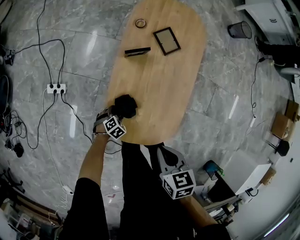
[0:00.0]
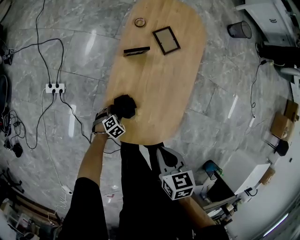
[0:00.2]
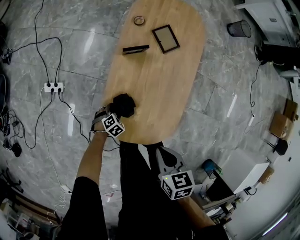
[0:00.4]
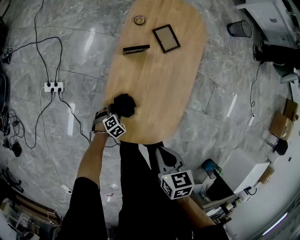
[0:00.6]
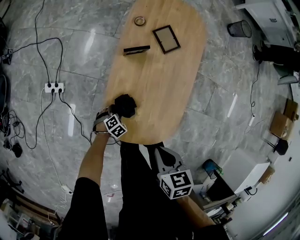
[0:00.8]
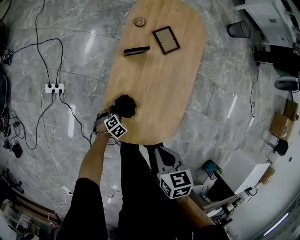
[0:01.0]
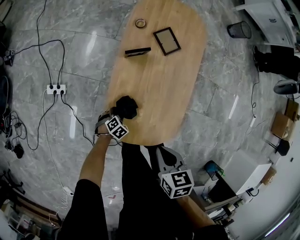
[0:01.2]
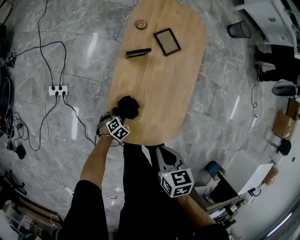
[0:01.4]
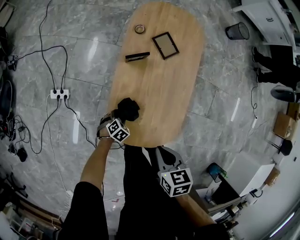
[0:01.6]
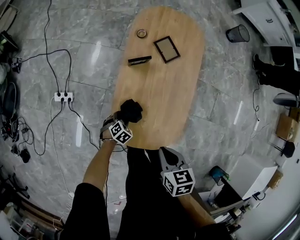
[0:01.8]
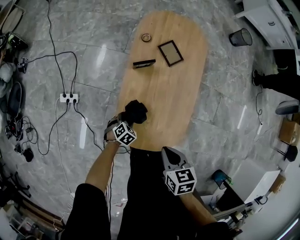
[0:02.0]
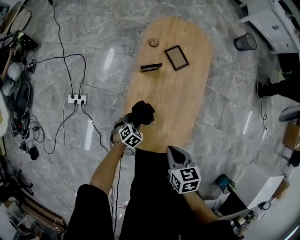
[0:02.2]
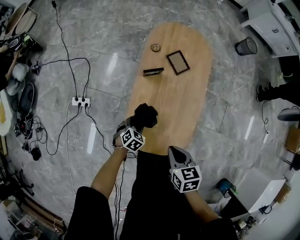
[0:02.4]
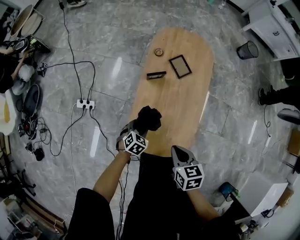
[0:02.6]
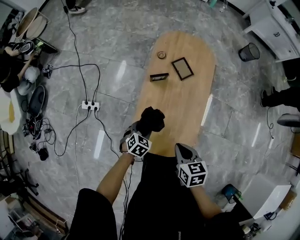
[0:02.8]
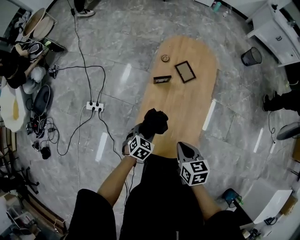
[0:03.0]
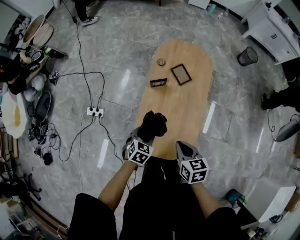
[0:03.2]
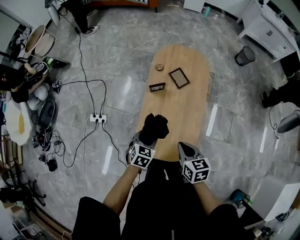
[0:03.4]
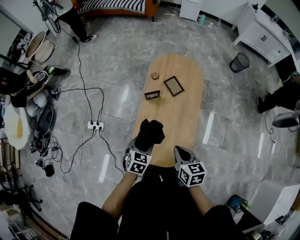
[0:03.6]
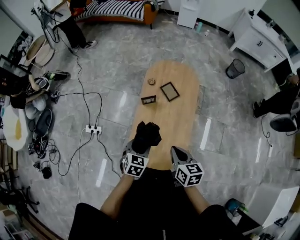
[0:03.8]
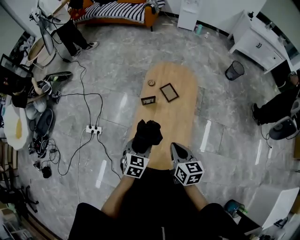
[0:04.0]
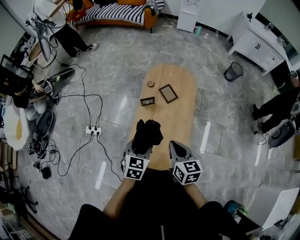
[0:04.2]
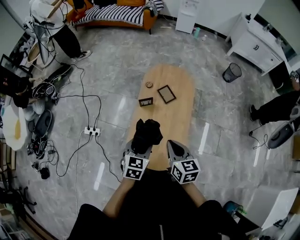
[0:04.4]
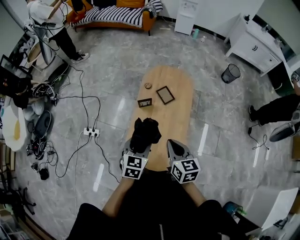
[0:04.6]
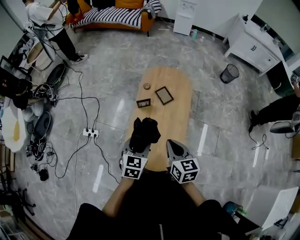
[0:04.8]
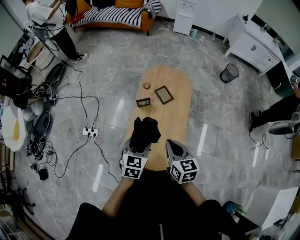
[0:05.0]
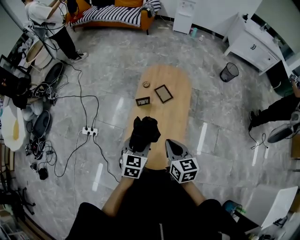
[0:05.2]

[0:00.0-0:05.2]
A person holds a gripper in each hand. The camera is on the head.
0:00.0 to 0:01.8: There are only small adjustments of the grippers.
0:01.8 to 0:03.4: The left gripper shifts approximately 25 cm upward, and rotates roughly 30 degrees; the right gripper goes about 10 cm upward.
0:03.4 to 0:05.2: The right gripper moves upward, approximately 10 cm. Meanwhile the left gripper moves upward, roughly 15 cm.

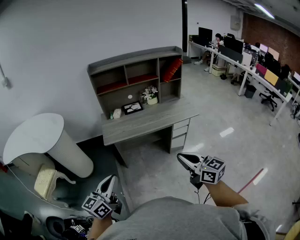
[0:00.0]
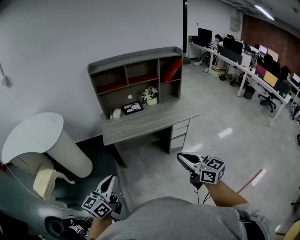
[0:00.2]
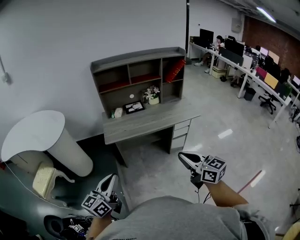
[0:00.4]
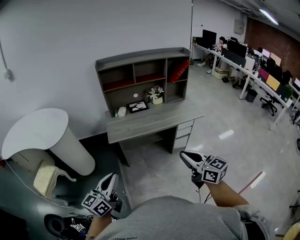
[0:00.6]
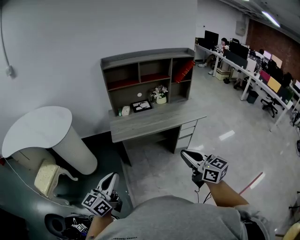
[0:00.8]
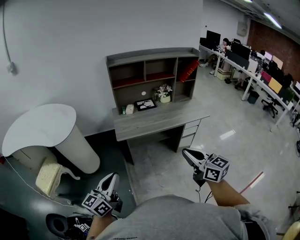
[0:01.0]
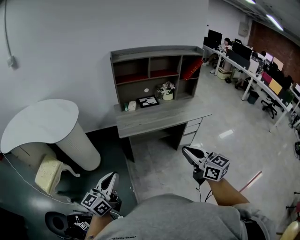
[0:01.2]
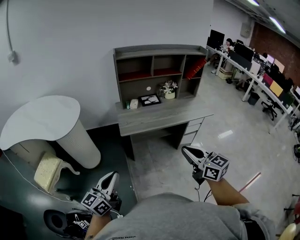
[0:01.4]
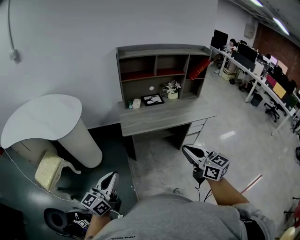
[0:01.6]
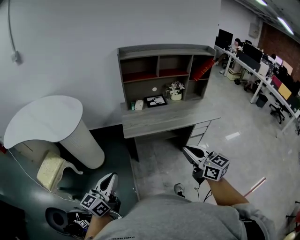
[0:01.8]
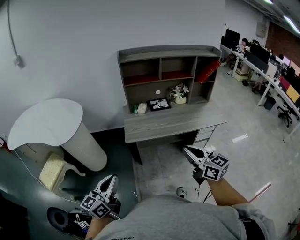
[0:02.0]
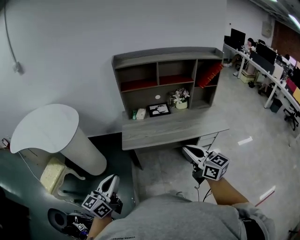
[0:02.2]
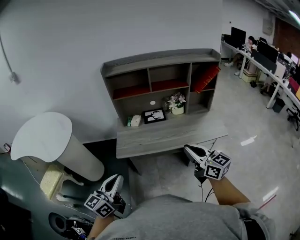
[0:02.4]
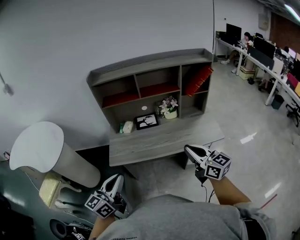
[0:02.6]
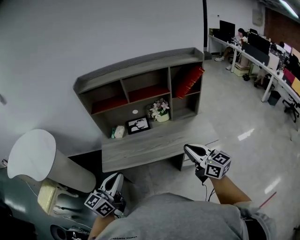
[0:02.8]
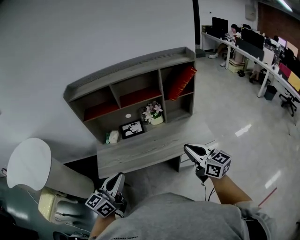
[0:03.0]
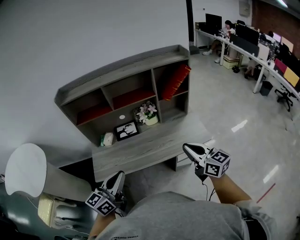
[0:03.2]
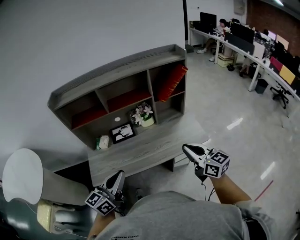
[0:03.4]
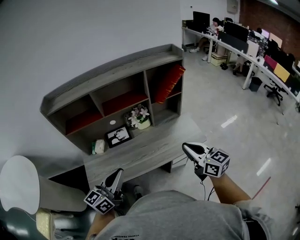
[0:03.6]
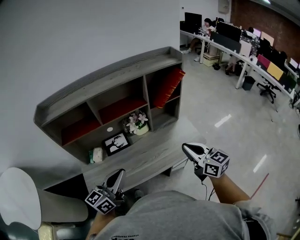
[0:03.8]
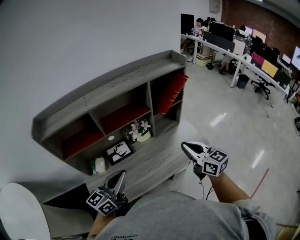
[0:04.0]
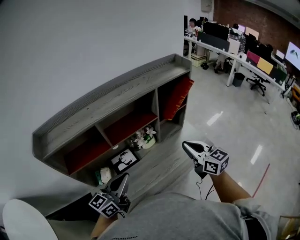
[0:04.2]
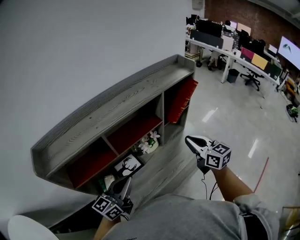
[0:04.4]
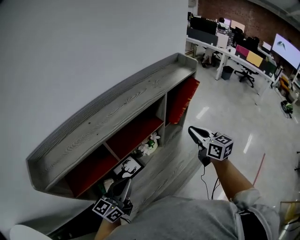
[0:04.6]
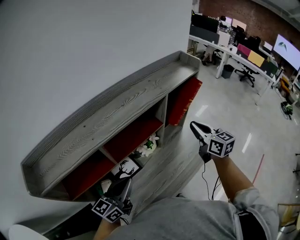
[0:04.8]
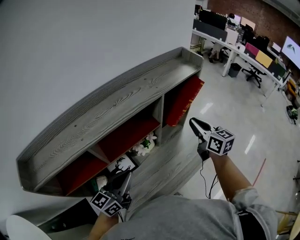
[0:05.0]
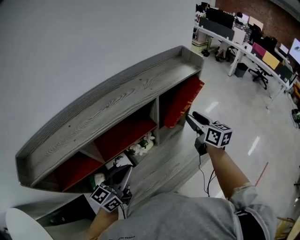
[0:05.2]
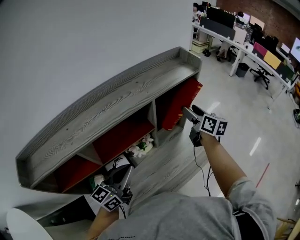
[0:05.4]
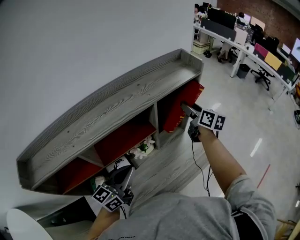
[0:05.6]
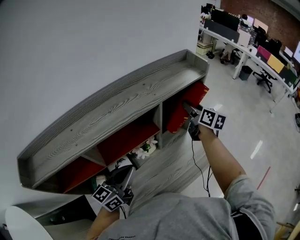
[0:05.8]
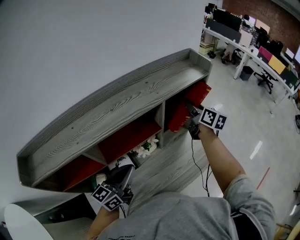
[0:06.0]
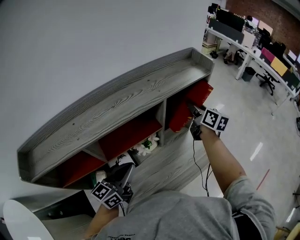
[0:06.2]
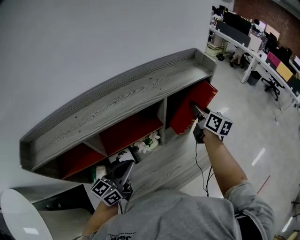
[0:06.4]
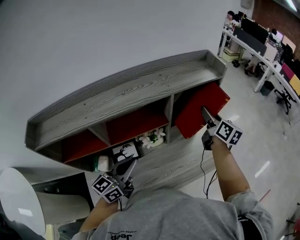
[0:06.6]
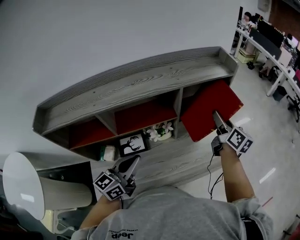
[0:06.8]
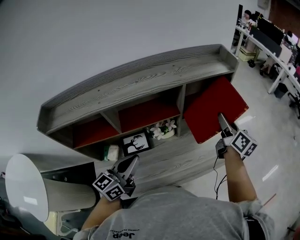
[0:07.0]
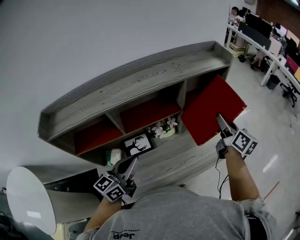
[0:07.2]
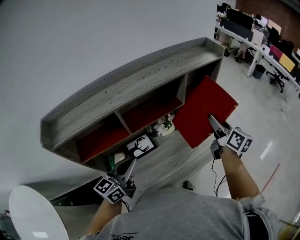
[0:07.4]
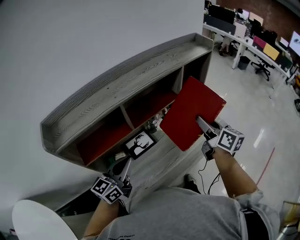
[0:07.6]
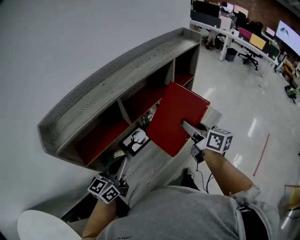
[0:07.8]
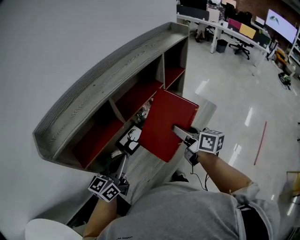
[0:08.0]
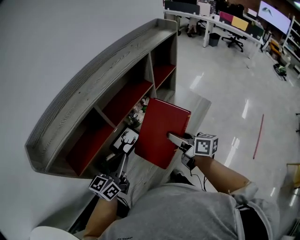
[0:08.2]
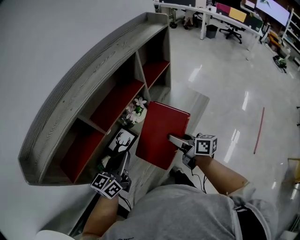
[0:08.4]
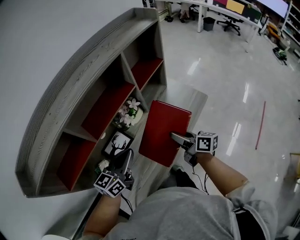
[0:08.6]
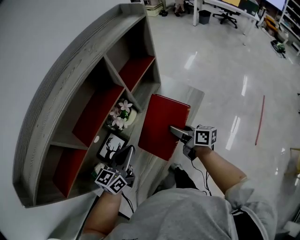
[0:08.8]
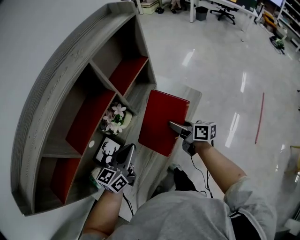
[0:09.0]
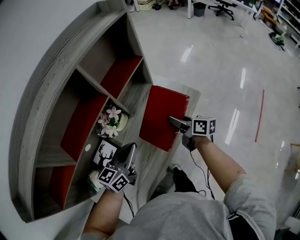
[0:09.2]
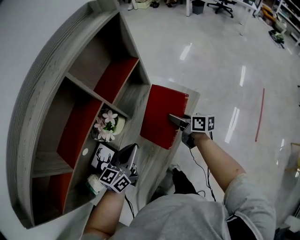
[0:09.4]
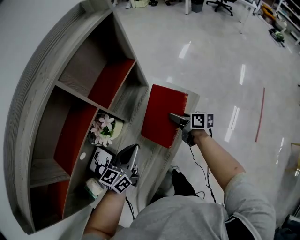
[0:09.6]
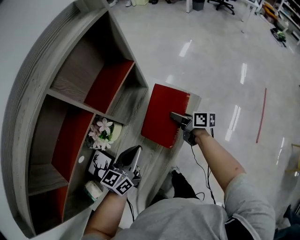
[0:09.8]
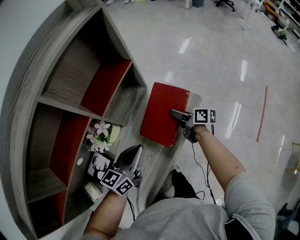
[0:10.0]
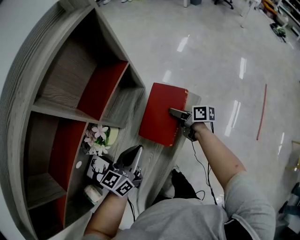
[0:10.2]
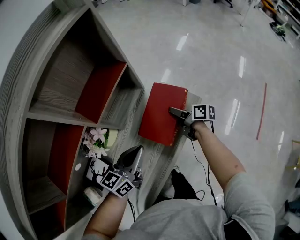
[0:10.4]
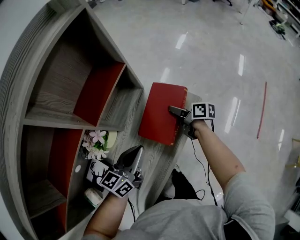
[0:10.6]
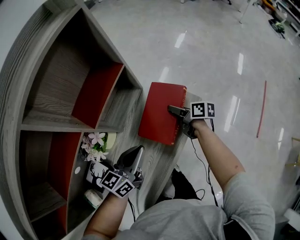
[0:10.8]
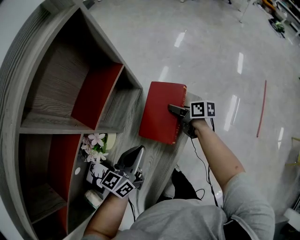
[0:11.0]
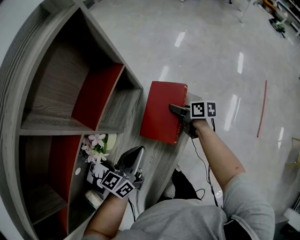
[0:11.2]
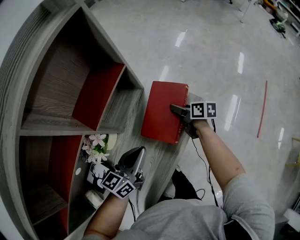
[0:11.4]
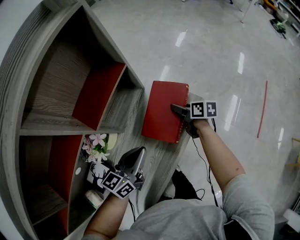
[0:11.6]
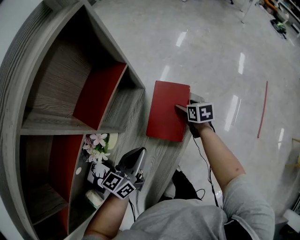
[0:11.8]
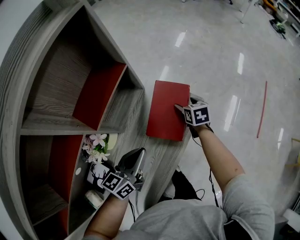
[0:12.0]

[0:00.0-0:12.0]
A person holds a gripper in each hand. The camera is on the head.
0:00.0 to 0:01.6: Both grippers travel together to the left, roughly 20 cm.
0:01.6 to 0:03.0: The pair of grippers is taken to the right and forward, about 50 cm.
0:03.0 to 0:04.4: The right gripper moves about 25 cm, and changes its angle by some 30 degrees. The left gripper ends up some 35 cm from where it was, and rotates some 30 degrees.
0:04.4 to 0:06.0: The right gripper is displaced forward by roughly 30 cm, turns by some 30 degrees, and opens; the left gripper moves forward, some 15 cm.
0:06.0 to 0:07.6: The left gripper moves backward and to the left, roughly 20 cm; the right gripper shifts about 30 cm backward.
0:07.6 to 0:09.0: The left gripper is displaced to the right, downward and forward by roughly 25 cm, and rotates roughly 20 degrees. The right gripper moves downward, about 25 cm, and rotates roughly 20 degrees.
0:09.0 to 0:10.4: The left gripper moves forward, to the right and downward, some 20 cm. Meanwhile the right gripper is displaced downward, forward and to the right by roughly 25 cm.
0:10.4 to 0:12.0: The right gripper travels to the right by about 5 cm, turns by about 50 degrees, and opens its fingers.

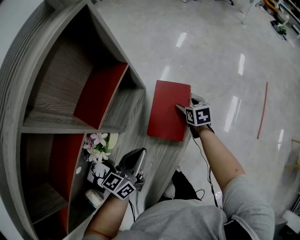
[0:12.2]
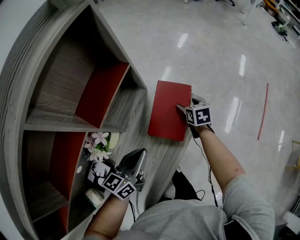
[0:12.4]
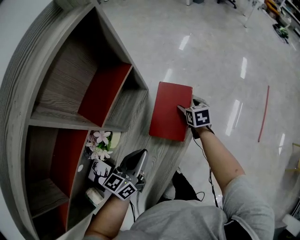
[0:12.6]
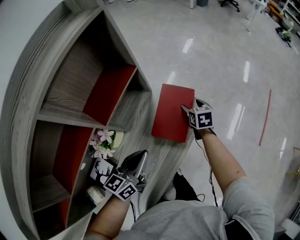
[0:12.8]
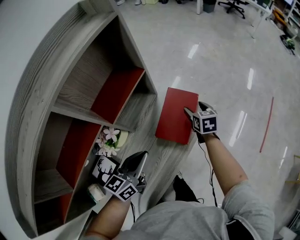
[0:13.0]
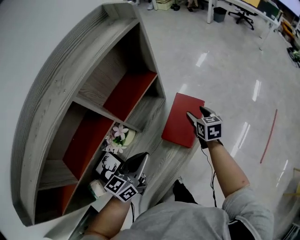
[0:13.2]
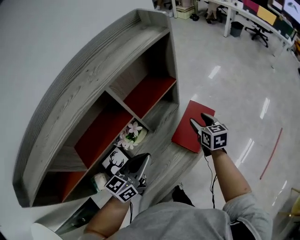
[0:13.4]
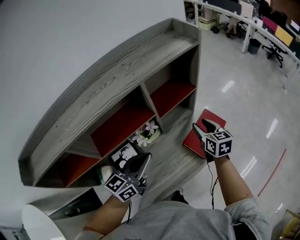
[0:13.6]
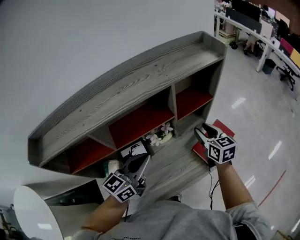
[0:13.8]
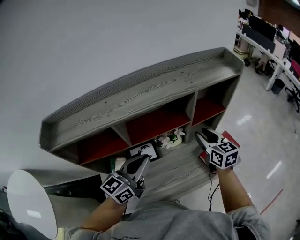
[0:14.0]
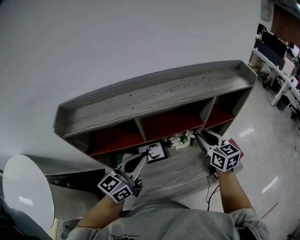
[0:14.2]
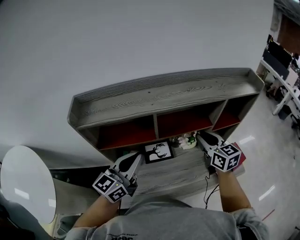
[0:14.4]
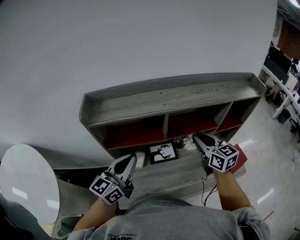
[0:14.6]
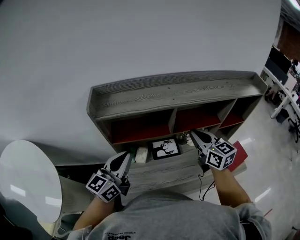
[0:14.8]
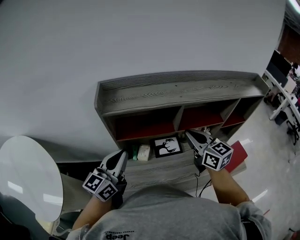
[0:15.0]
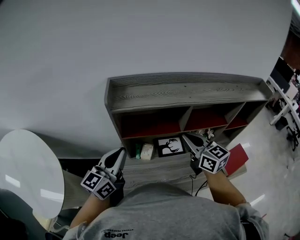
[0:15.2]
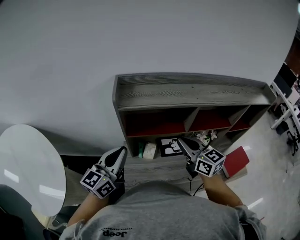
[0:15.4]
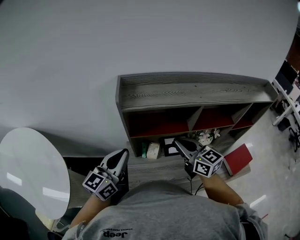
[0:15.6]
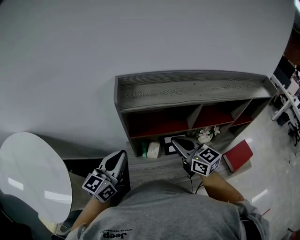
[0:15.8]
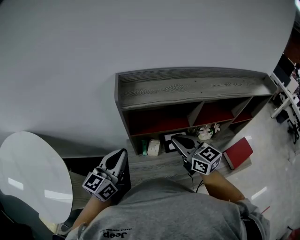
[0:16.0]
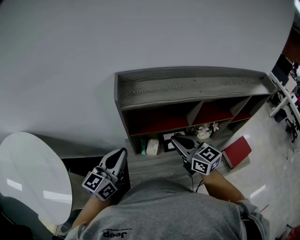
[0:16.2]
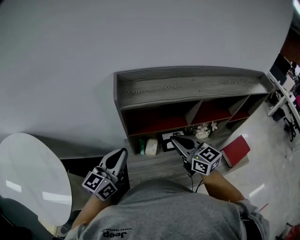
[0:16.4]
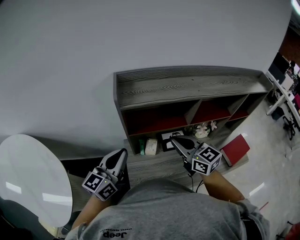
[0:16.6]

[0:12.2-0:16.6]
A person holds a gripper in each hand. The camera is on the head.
0:12.2 to 0:13.6: The left gripper goes roughly 20 cm upward, to the left and backward, and changes its angle by about 20 degrees, while the right gripper goes about 25 cm upward and to the left, turns by some 30 degrees, and closes up.
0:13.6 to 0:15.2: Both grippers are carried roughly 50 cm. The left gripper rotates about 40 degrees, while the right gripper rotates roughly 50 degrees, and closes its fingers.
0:15.2 to 0:16.6: The right gripper goes approximately 10 cm to the left.

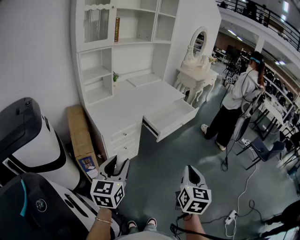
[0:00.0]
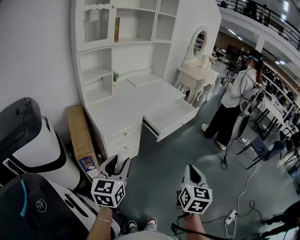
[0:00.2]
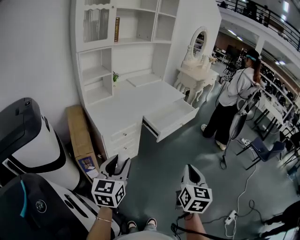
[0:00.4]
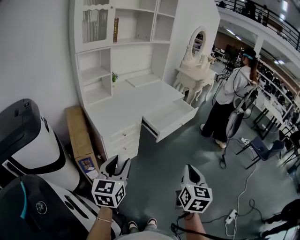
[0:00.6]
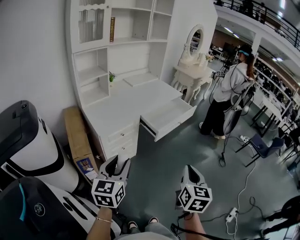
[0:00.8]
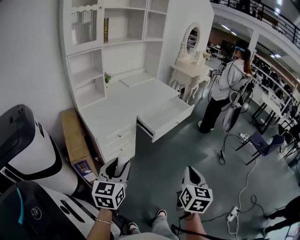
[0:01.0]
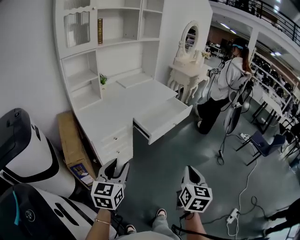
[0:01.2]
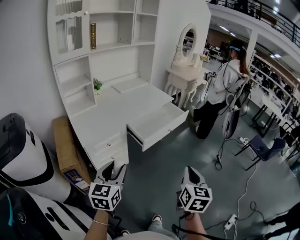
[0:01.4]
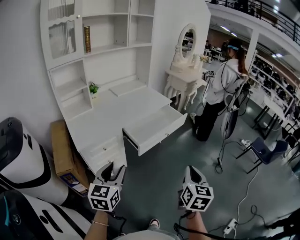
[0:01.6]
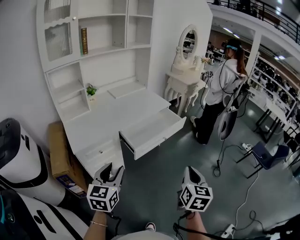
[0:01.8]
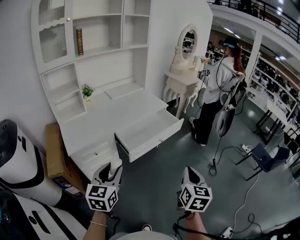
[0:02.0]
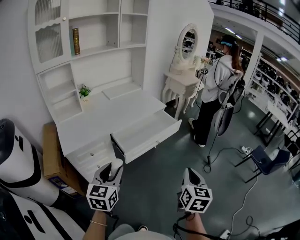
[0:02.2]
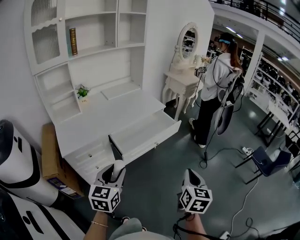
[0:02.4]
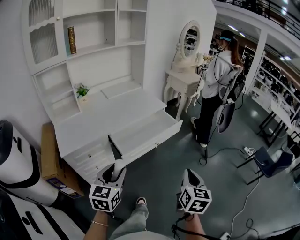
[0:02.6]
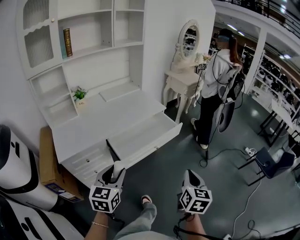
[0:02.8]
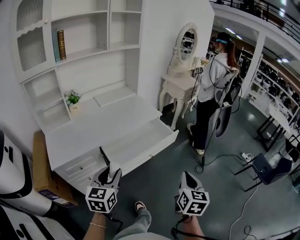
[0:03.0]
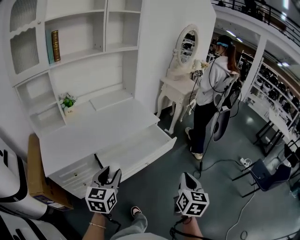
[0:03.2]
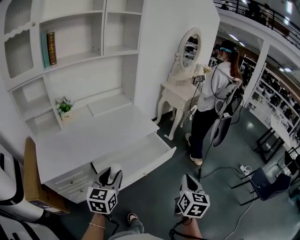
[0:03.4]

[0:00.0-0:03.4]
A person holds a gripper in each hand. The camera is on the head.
0:00.0 to 0:01.6: The two grippers go roughly 20 cm forward and to the right.
0:01.6 to 0:03.4: The grippers both shift forward by some 35 cm.
